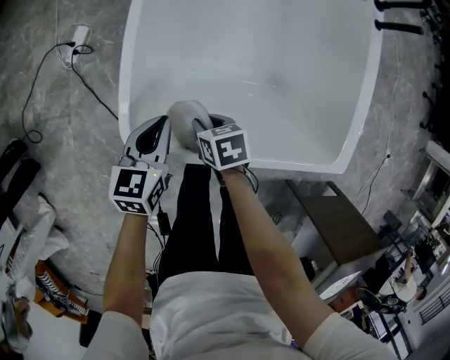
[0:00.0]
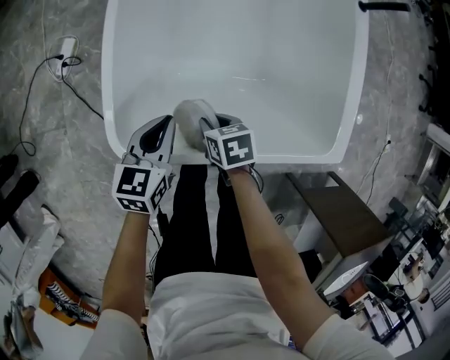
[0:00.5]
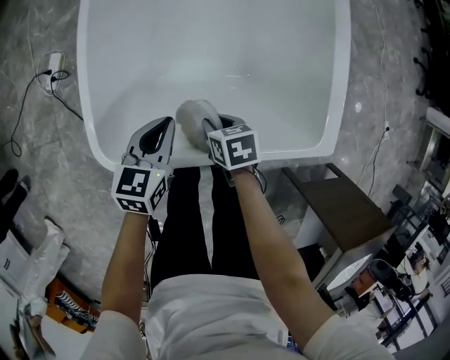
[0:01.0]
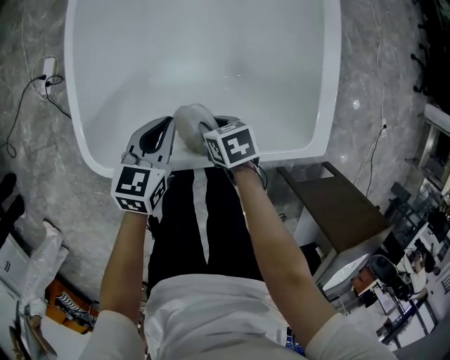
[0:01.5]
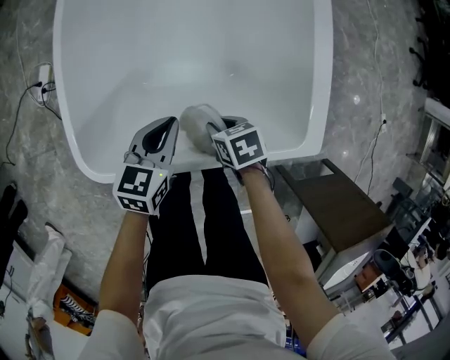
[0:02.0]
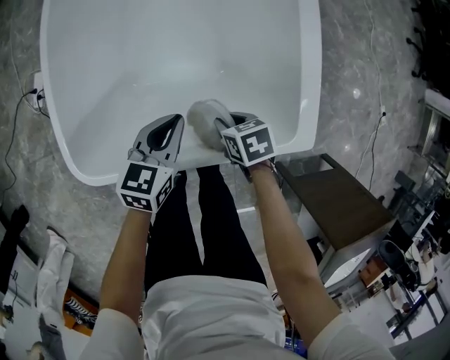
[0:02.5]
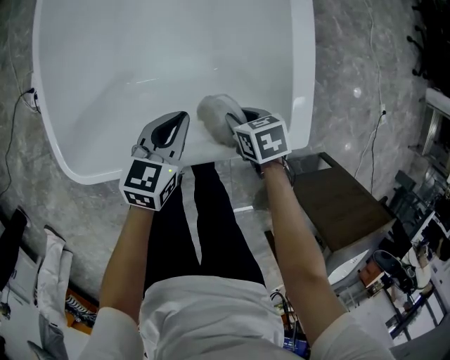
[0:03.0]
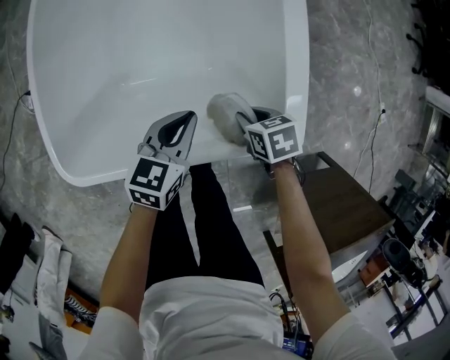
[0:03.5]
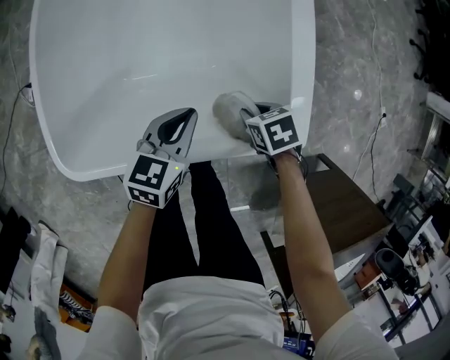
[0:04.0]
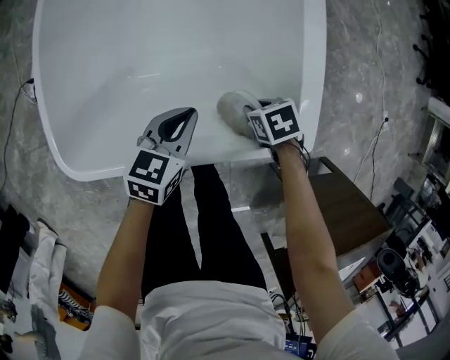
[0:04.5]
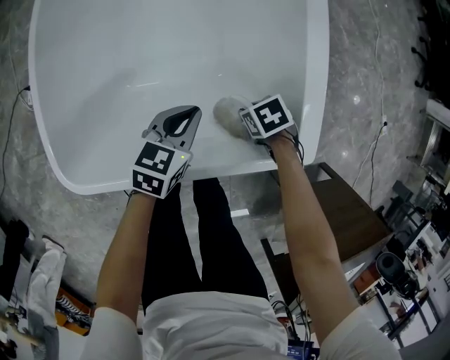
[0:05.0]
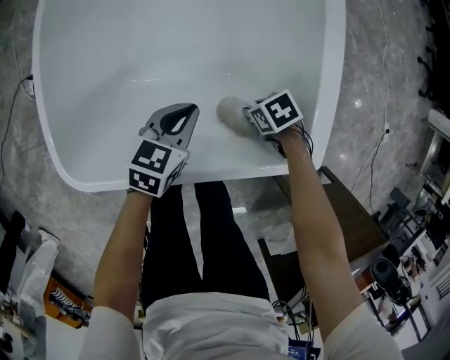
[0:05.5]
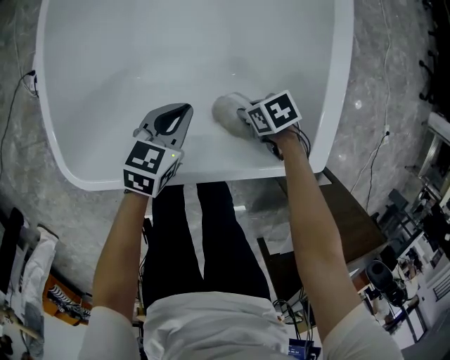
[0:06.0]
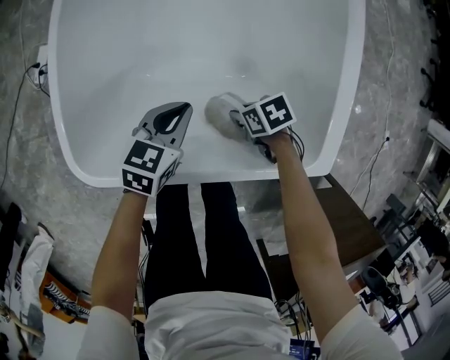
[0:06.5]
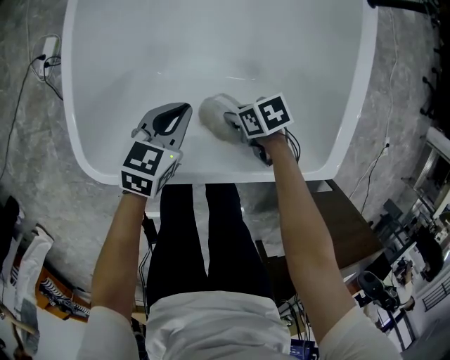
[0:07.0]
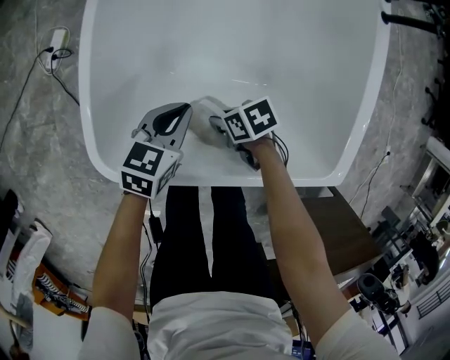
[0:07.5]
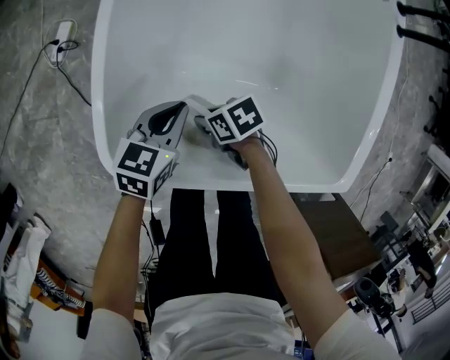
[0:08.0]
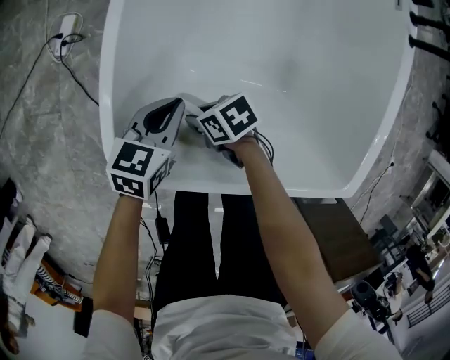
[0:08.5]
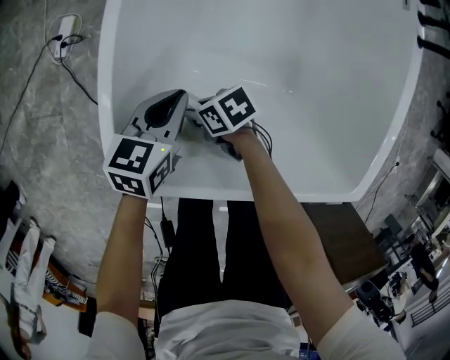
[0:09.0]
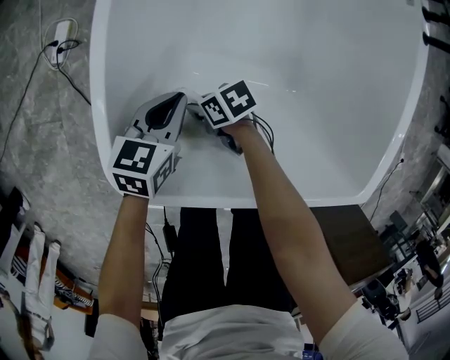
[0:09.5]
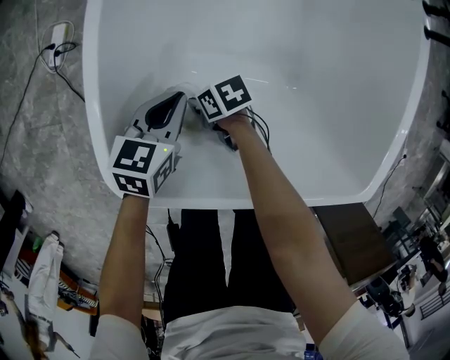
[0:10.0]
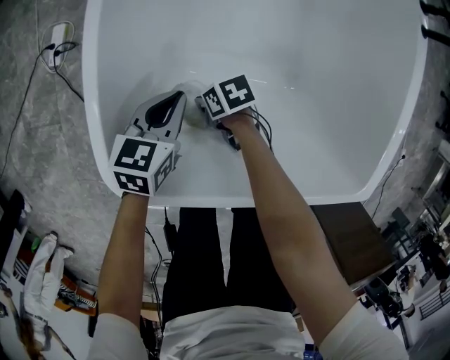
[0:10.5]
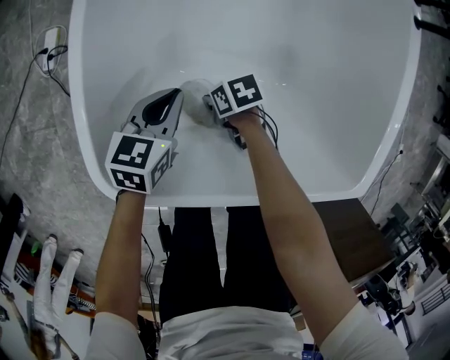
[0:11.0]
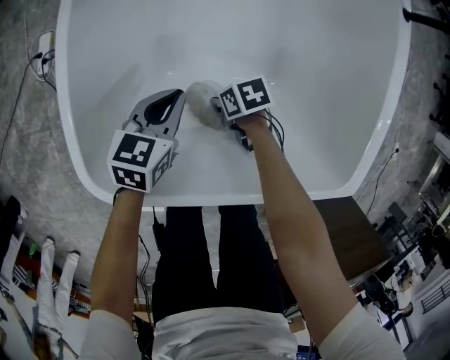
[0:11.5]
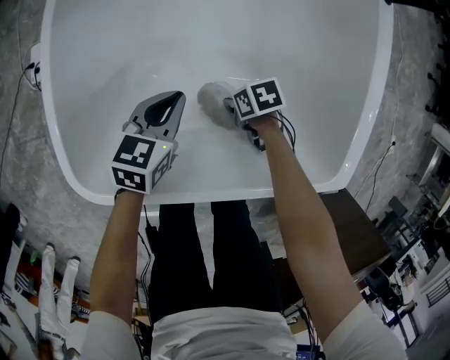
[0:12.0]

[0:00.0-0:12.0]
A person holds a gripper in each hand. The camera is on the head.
0:00.0 to 0:02.0: The grippers both shift to the right by roughly 20 cm.
0:02.0 to 0:04.0: Both grippers move to the right, approximately 15 cm.
0:04.0 to 0:06.0: The right gripper travels downward by about 10 cm; the left gripper changes place by roughly 10 cm.
0:06.0 to 0:08.0: The right gripper changes place by some 25 cm; the left gripper ends up roughly 15 cm from where it was.
0:08.0 to 0:10.0: The left gripper moves downward, approximately 5 cm. The right gripper is displaced downward by roughly 10 cm.
0:10.0 to 0:12.0: The left gripper moves some 10 cm. Meanwhile the right gripper changes place by roughly 25 cm.

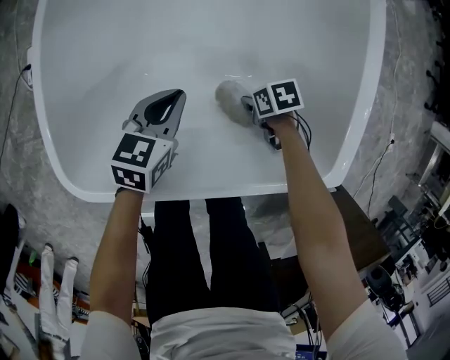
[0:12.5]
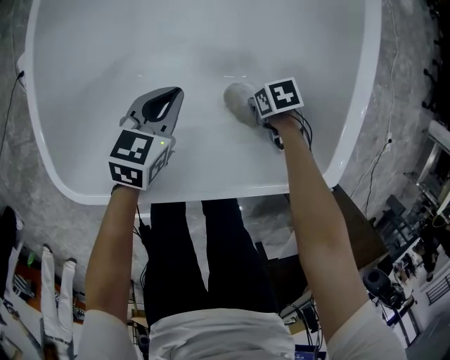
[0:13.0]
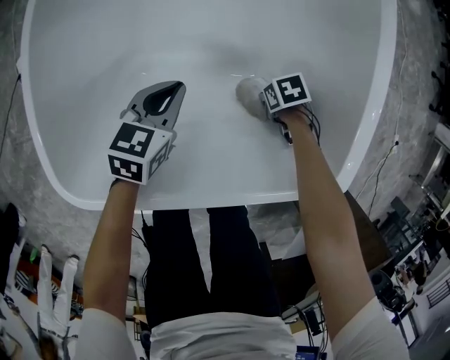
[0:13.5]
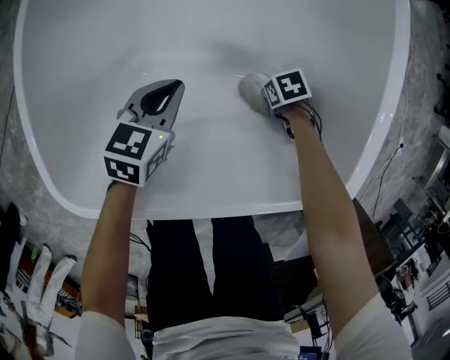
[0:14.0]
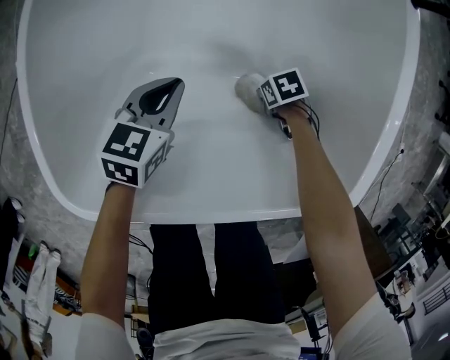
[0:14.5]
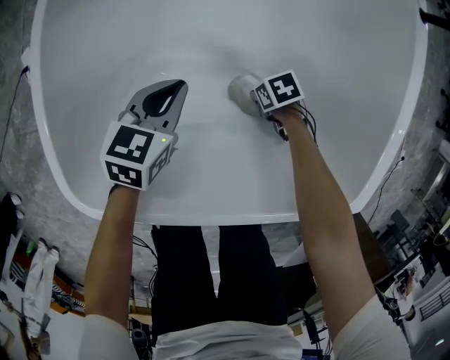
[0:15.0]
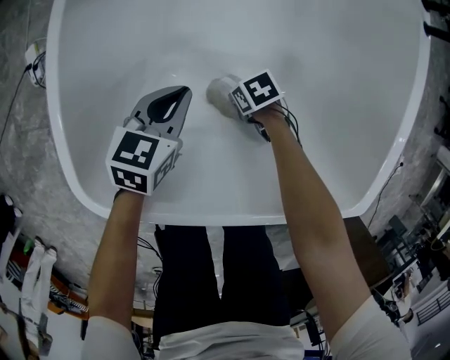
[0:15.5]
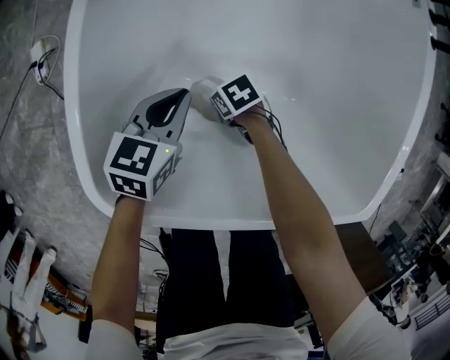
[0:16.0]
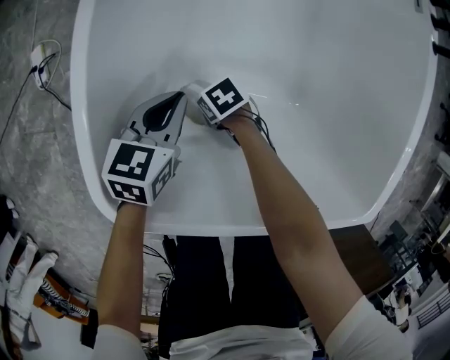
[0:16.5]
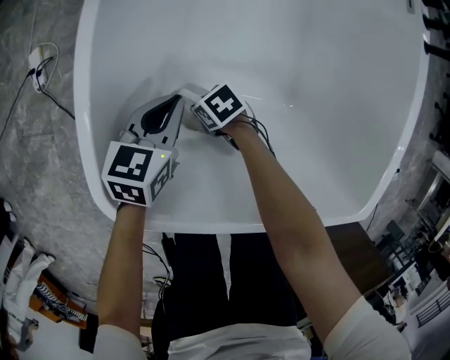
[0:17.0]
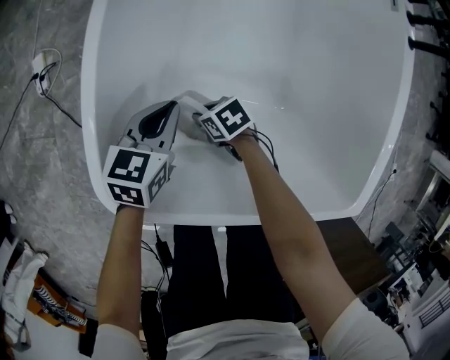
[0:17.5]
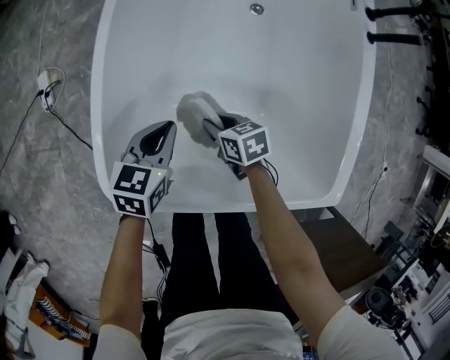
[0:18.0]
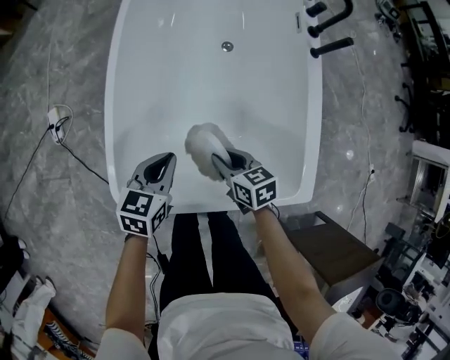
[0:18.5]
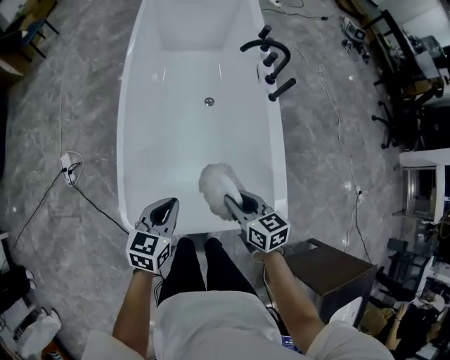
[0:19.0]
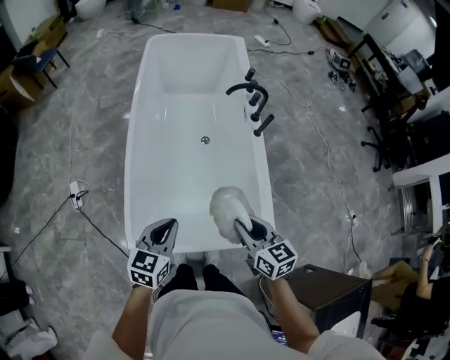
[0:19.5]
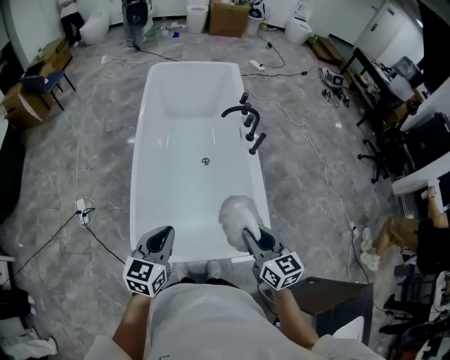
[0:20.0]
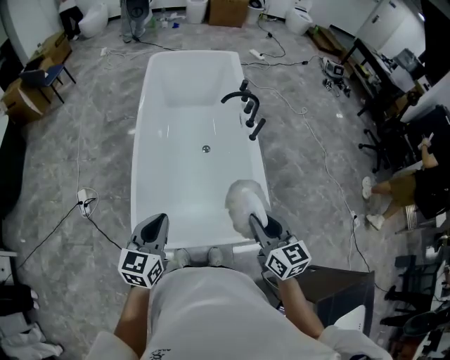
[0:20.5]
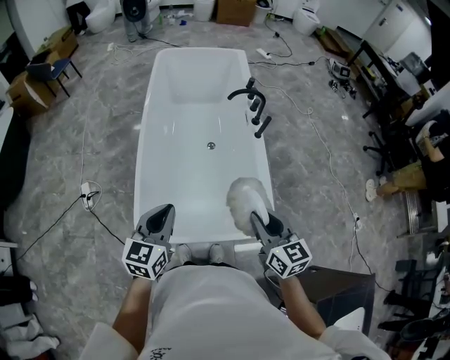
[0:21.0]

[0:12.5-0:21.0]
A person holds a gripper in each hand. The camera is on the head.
0:12.5 to 0:14.5: The right gripper goes some 10 cm downward, while the left gripper shifts some 5 cm downward.
0:14.5 to 0:16.5: The left gripper changes place by roughly 15 cm; the right gripper ends up about 30 cm from where it was, and turns by about 20 degrees.
0:16.5 to 0:19.0: Both grippers travel together upward, some 40 cm. The right gripper turns by approximately 50 degrees.
0:19.0 to 0:21.0: The left gripper is displaced upward by roughly 20 cm; the right gripper goes roughly 20 cm upward and to the right, and changes its angle by roughly 20 degrees.

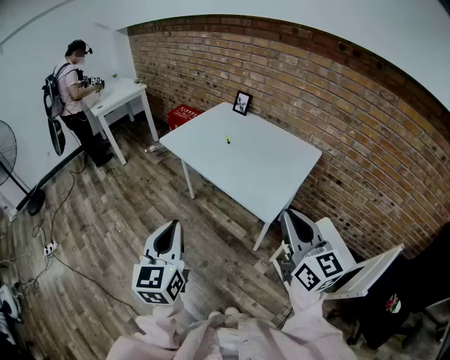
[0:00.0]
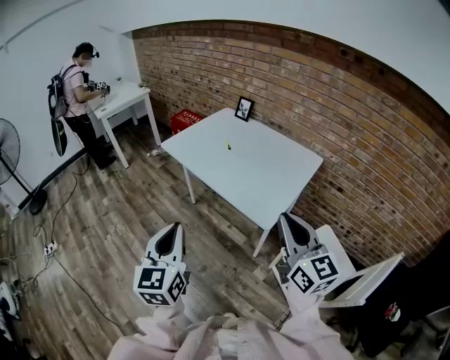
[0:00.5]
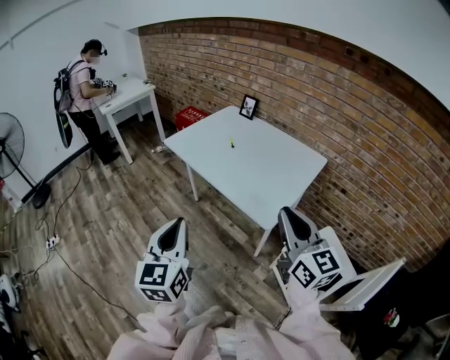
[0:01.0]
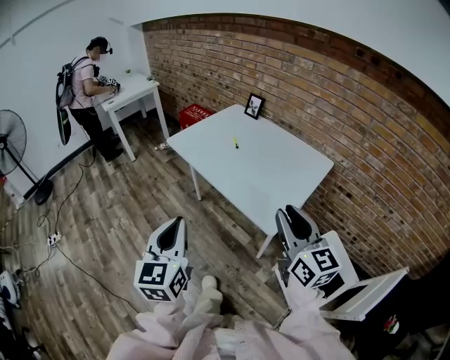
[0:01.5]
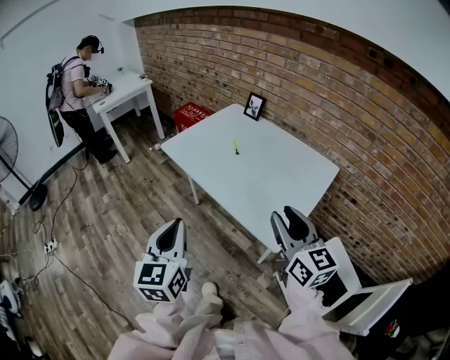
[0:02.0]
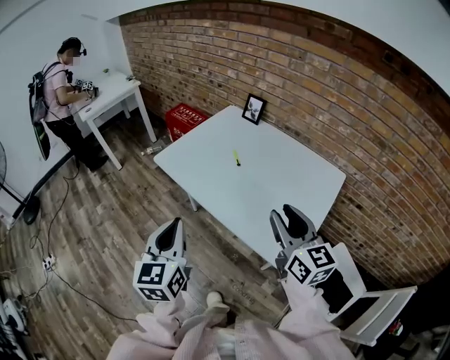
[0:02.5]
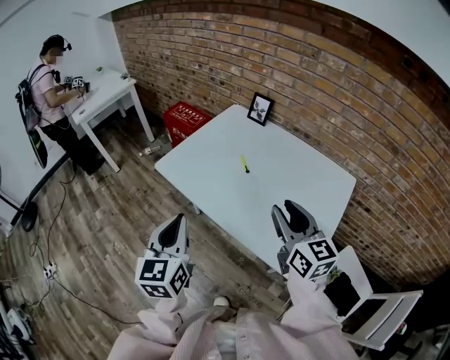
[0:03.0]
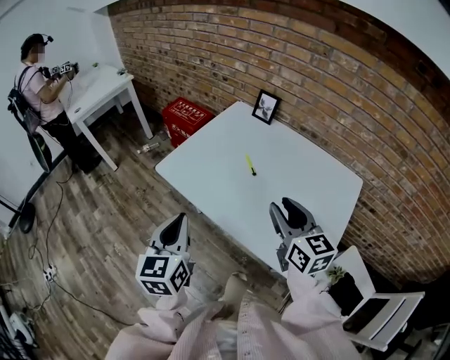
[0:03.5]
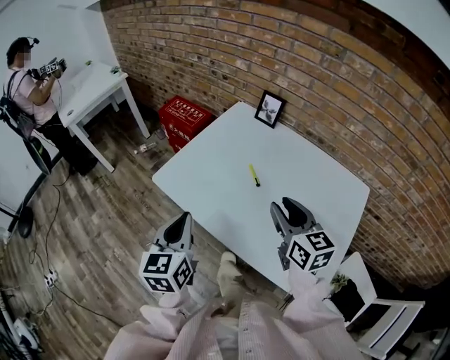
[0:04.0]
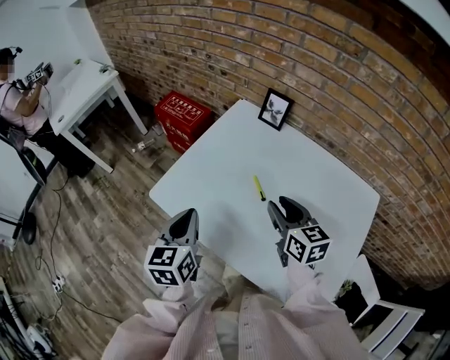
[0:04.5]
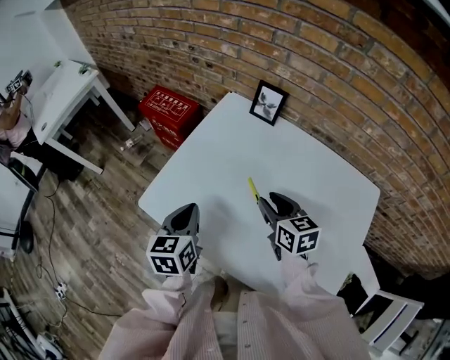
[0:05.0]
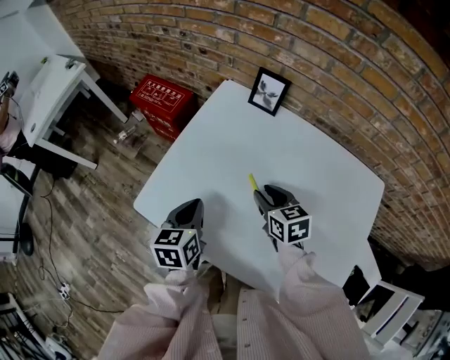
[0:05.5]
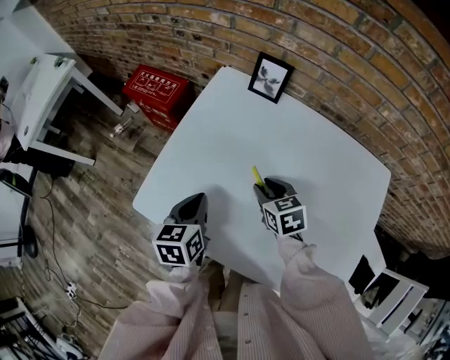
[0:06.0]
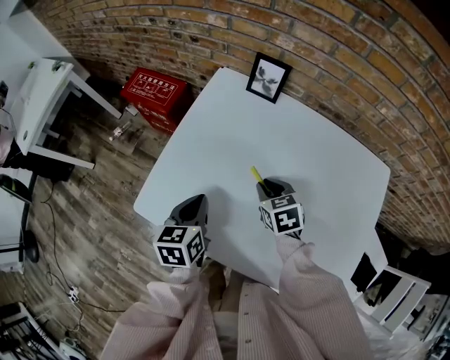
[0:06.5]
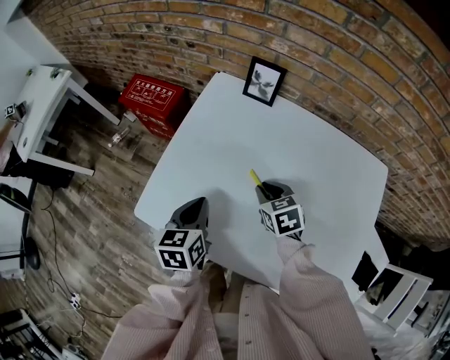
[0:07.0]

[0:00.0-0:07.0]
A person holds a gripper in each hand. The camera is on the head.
0:00.0 to 0:02.0: Both grippers move forward, approximately 15 cm. The right gripper opens its fingers.
0:02.0 to 0:03.5: The two grippers go some 25 cm forward.
0:03.5 to 0:05.0: The two grippers go approximately 25 cm forward and downward. The right gripper rotates some 20 degrees.
0:05.0 to 0:07.0: The right gripper moves downward, some 10 cm, and changes its angle by roughly 20 degrees; the left gripper is displaced downward by about 5 cm.
